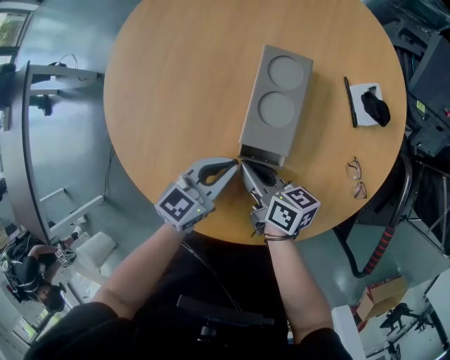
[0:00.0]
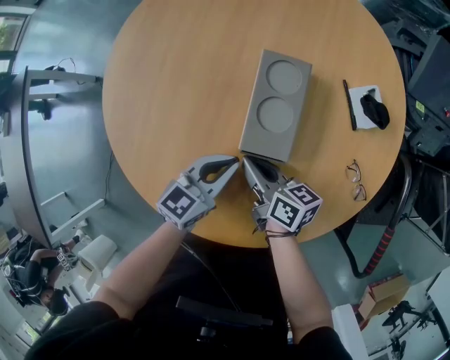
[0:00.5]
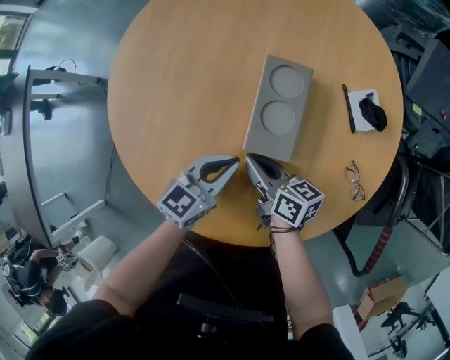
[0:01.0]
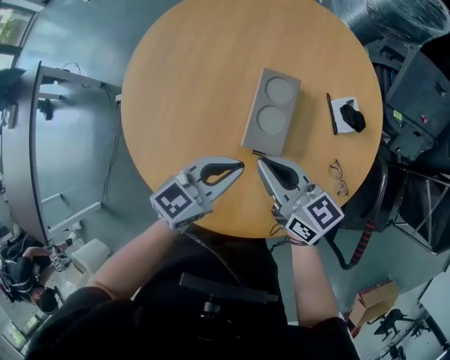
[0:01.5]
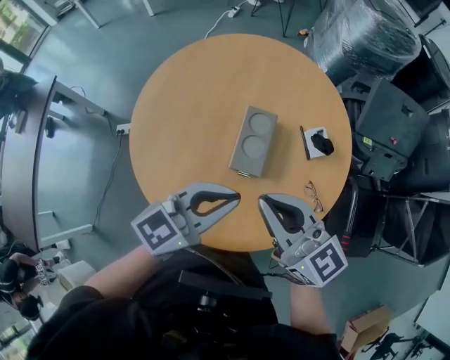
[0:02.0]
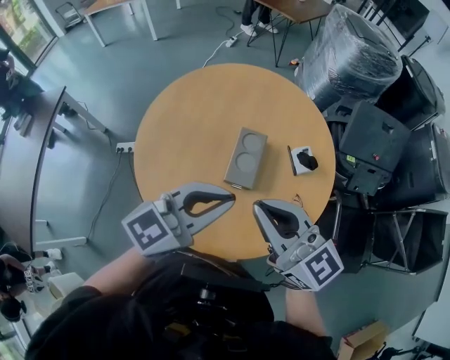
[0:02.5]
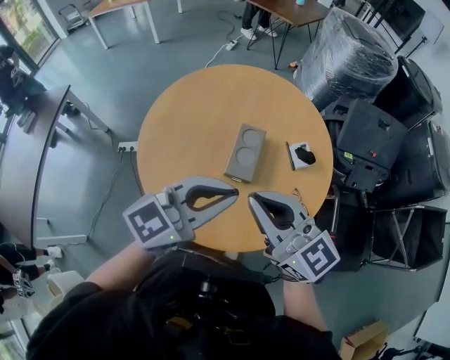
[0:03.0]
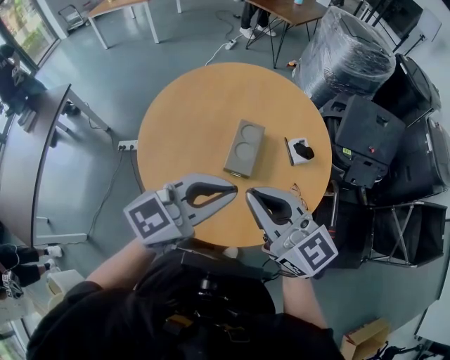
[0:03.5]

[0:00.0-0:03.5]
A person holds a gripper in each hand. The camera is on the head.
0:00.0 to 0:02.0: Both grippers travel together upward, approximately 35 cm. The left gripper swivels roughly 20 degrees. The right gripper rotates around the line of its fingers by roughly 50 degrees, counterclockwise from behind.
0:02.0 to 0:03.5: The left gripper moves upward and backward, about 15 cm, while the right gripper shifts some 15 cm backward and upward.

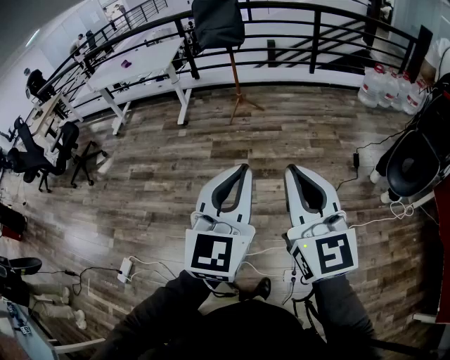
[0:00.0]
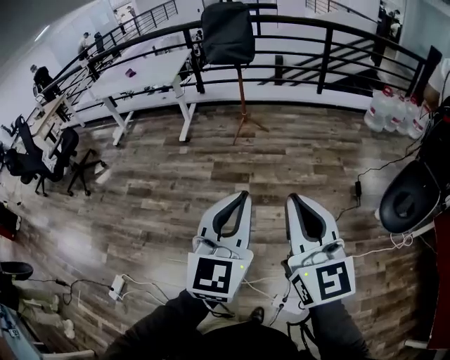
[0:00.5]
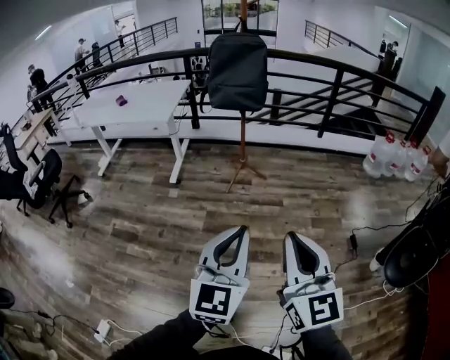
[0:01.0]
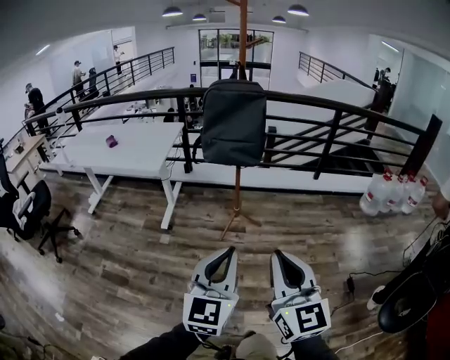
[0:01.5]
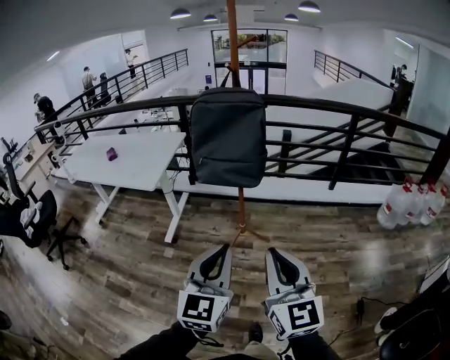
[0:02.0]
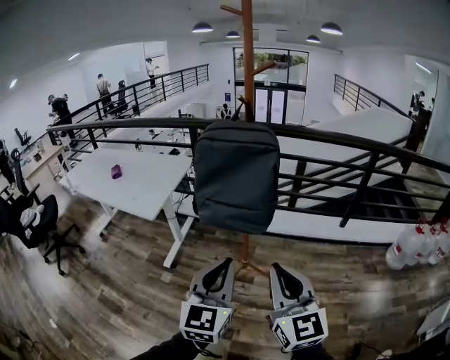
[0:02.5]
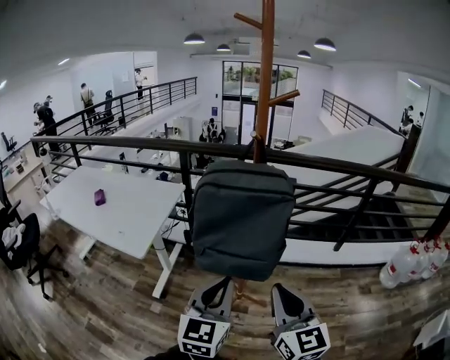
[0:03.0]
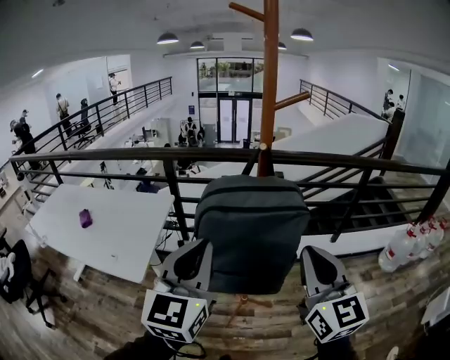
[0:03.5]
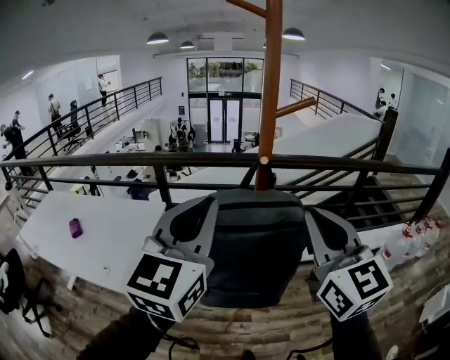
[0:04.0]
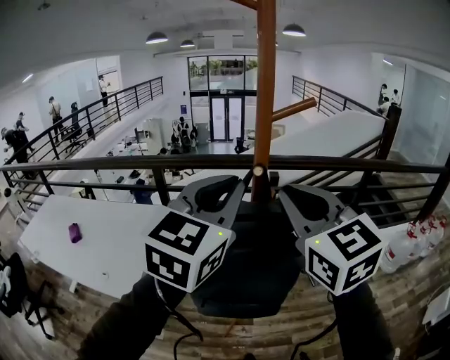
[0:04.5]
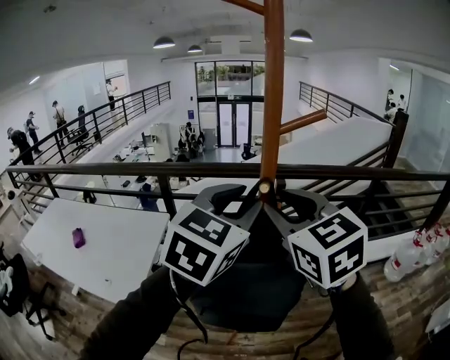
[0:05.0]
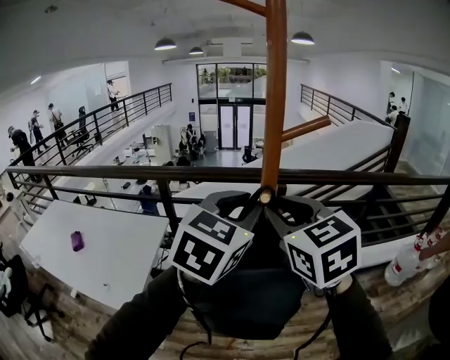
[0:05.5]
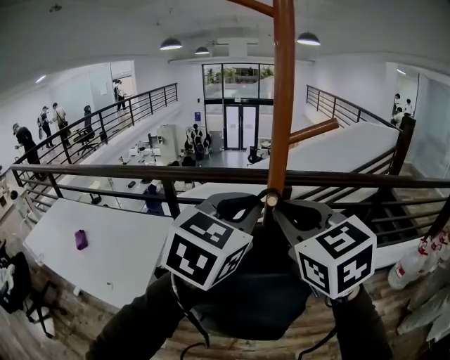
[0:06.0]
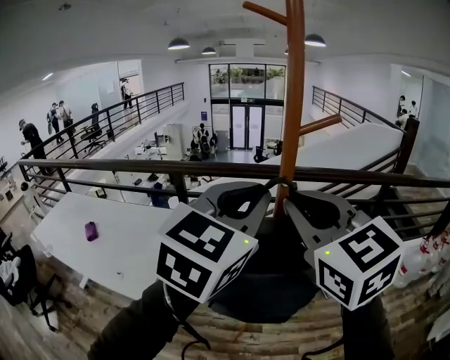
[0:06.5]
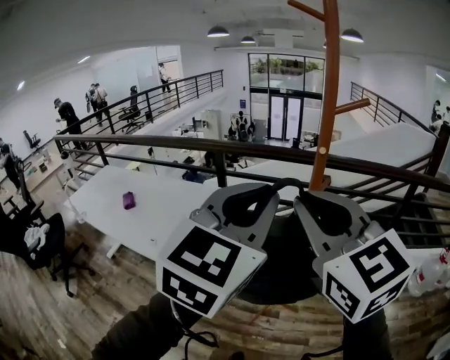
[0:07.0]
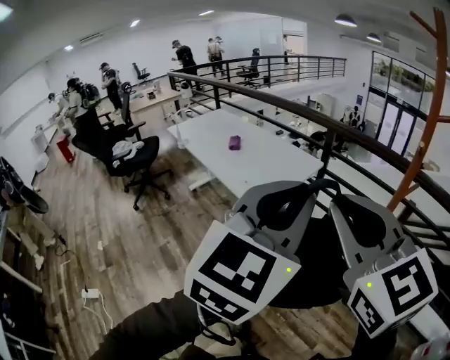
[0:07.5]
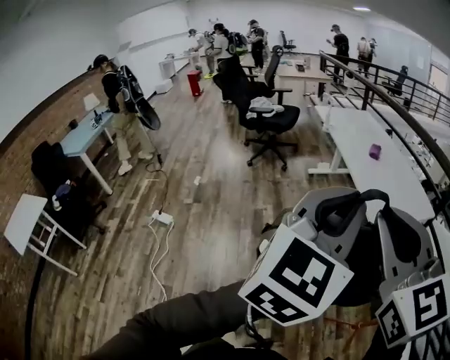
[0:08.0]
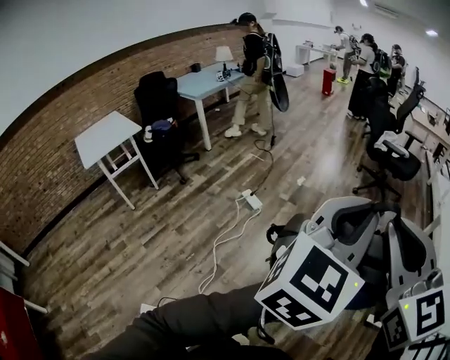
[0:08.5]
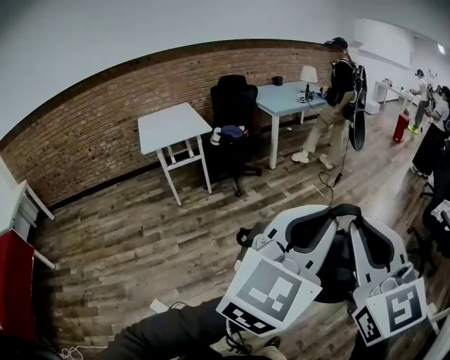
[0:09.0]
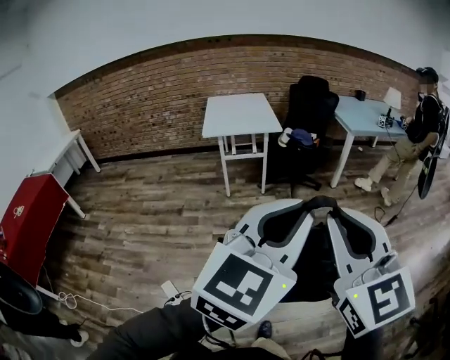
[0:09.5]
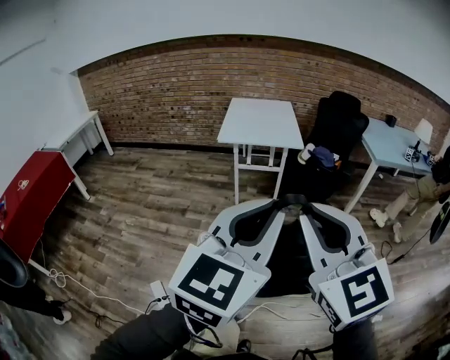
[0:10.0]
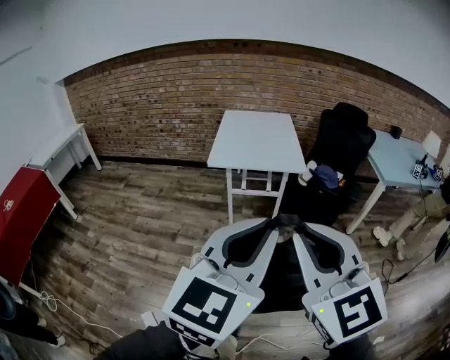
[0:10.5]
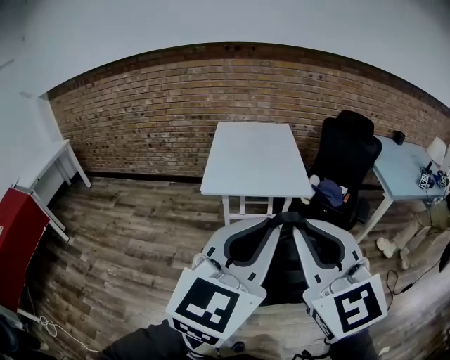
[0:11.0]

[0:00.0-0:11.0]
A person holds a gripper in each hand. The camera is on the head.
0:00.0 to 0:02.0: The two grippers travel together, forward, approximately 80 cm.
0:02.0 to 0:03.5: Both grippers are carried forward, some 50 cm.
0:03.5 to 0:05.5: Both grippers move forward, roughly 25 cm. The right gripper turns by about 20 degrees, and opens up. Meanwhile the left gripper swivels approximately 30 degrees, and opens up.
0:05.5 to 0:07.5: Both grippers are carried roughly 40 cm. The right gripper swivels roughly 40 degrees, while the left gripper turns by roughly 40 degrees.
0:07.5 to 0:09.0: The pair of grippers is taken roughly 90 cm. The right gripper changes its angle by approximately 90 degrees, while the left gripper changes its angle by roughly 90 degrees.
0:09.0 to 0:11.0: The pair of grippers is taken roughly 80 cm. The right gripper swivels about 40 degrees, while the left gripper turns by about 50 degrees.

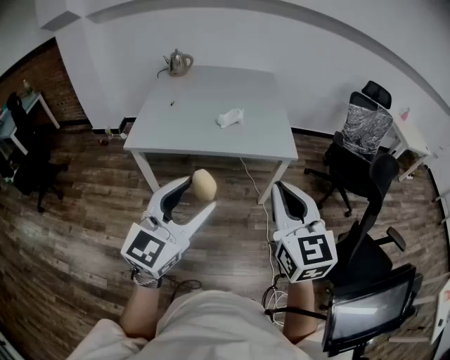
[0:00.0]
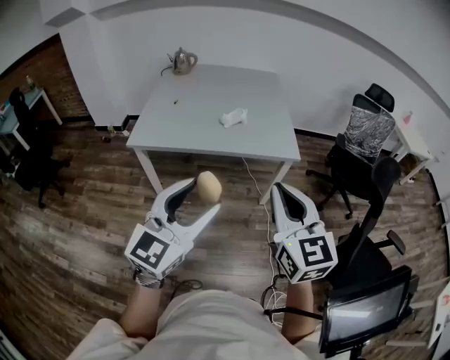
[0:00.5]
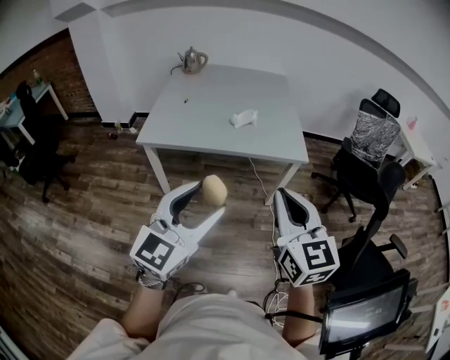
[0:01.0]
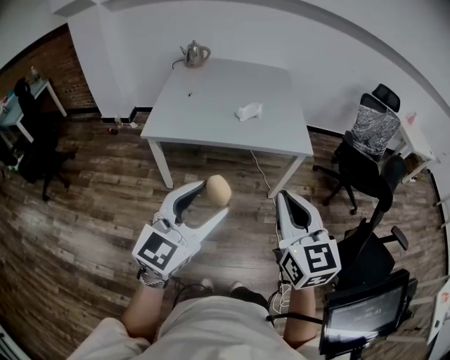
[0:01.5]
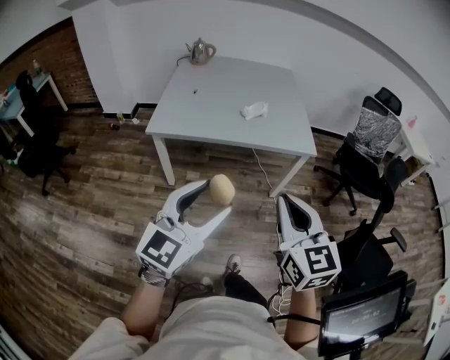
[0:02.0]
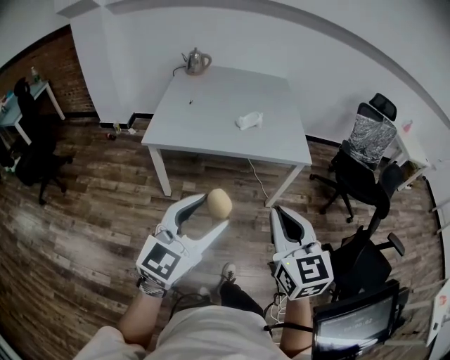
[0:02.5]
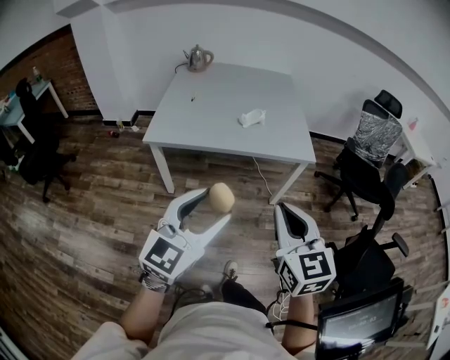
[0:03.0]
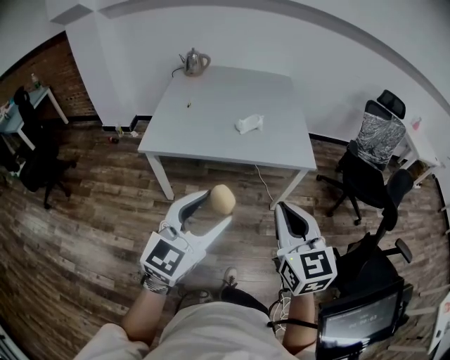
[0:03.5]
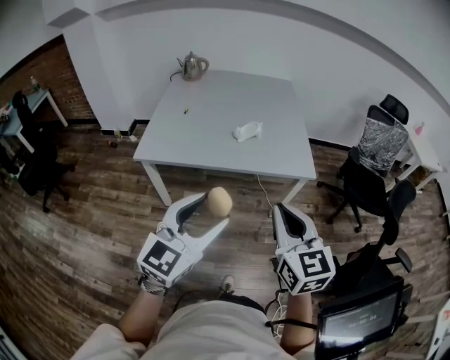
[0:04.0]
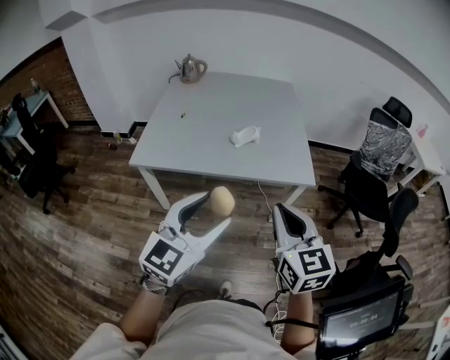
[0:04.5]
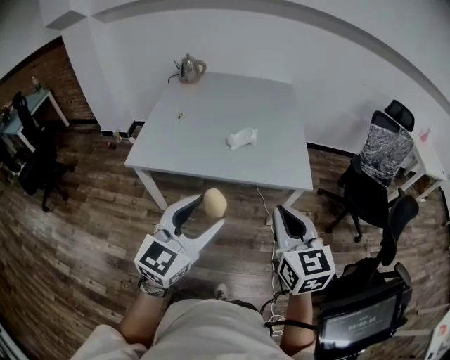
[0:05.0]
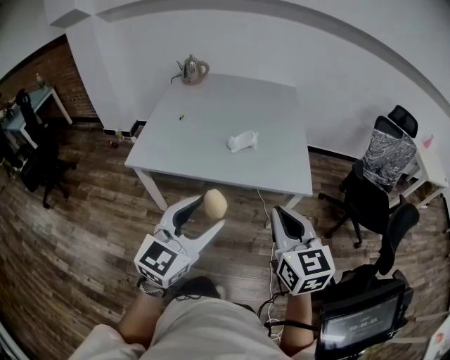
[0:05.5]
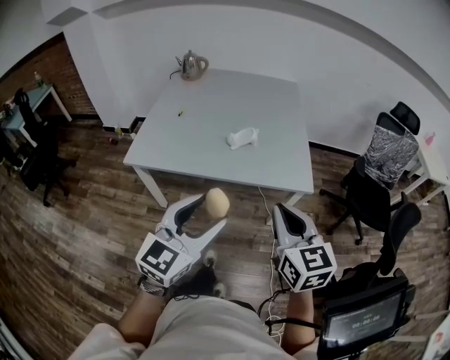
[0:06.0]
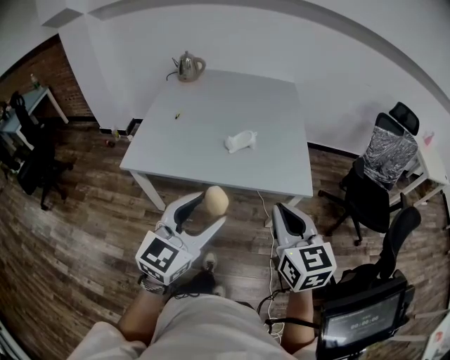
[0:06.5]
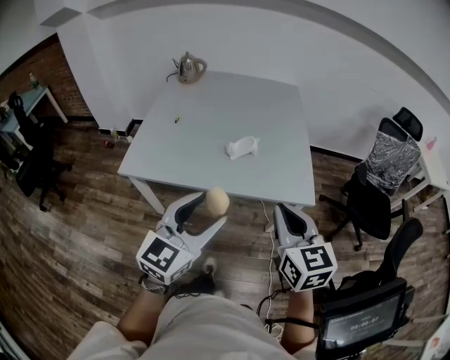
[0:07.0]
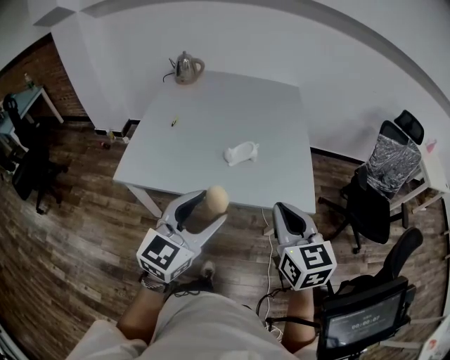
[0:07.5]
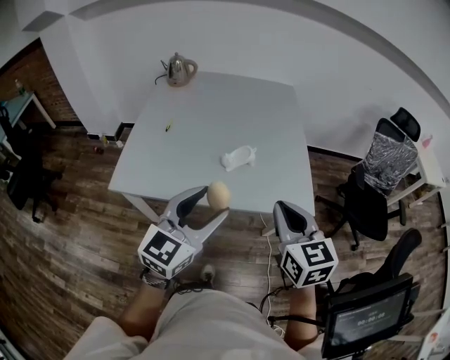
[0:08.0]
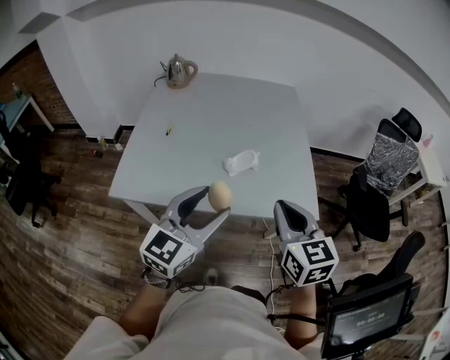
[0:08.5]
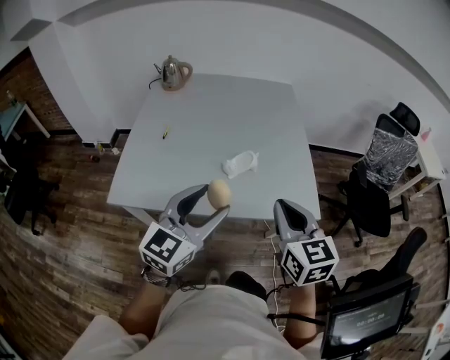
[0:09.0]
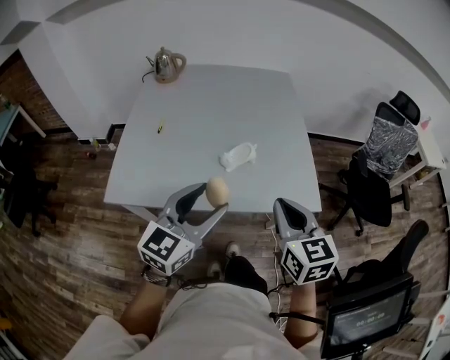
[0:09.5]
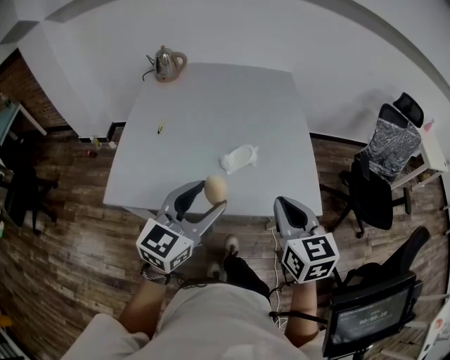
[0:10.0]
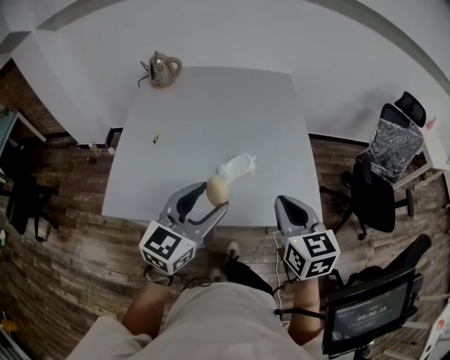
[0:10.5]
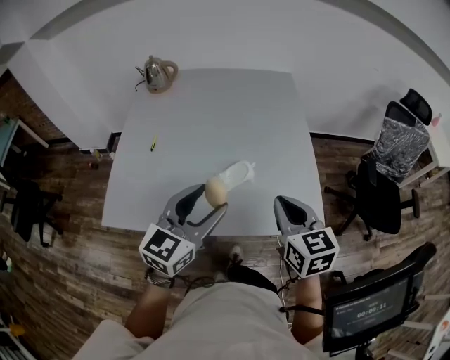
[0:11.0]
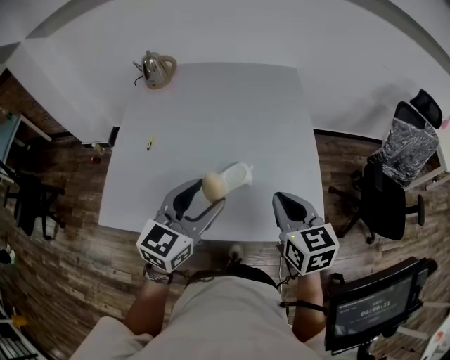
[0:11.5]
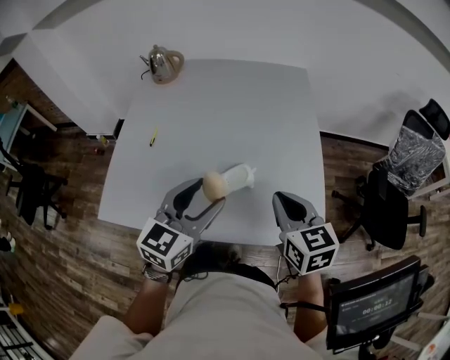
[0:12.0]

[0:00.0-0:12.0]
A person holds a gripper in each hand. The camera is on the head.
0:00.0 to 0:02.0: The right gripper travels to the left and backward by about 10 cm. The left gripper travels to the left by some 5 cm.
0:02.0 to 0:04.0: The grippers both shift forward by approximately 10 cm.
0:04.0 to 0:06.0: Both grippers move forward, about 10 cm.
0:06.0 to 0:08.0: Both grippers travel together forward, approximately 15 cm.
0:08.0 to 0:10.0: Both grippers move forward, roughly 5 cm.
0:10.0 to 0:12.0: The two grippers go roughly 15 cm forward.
